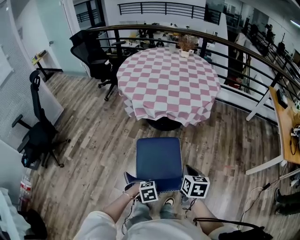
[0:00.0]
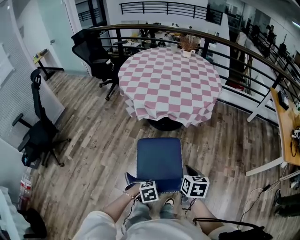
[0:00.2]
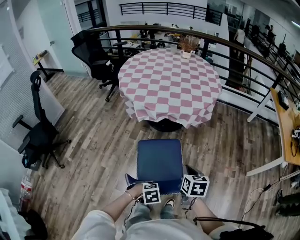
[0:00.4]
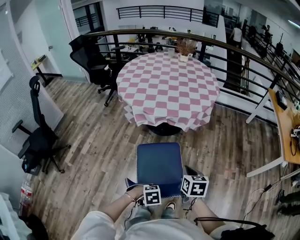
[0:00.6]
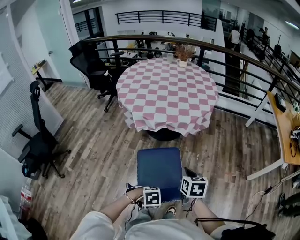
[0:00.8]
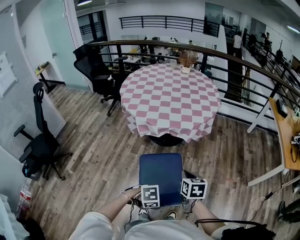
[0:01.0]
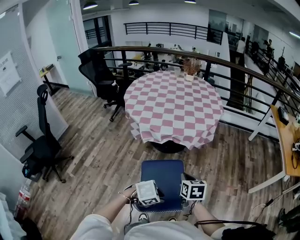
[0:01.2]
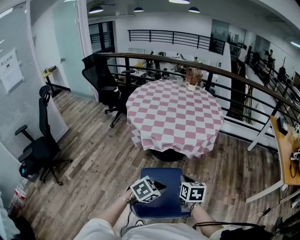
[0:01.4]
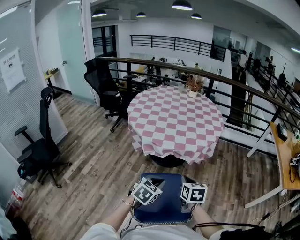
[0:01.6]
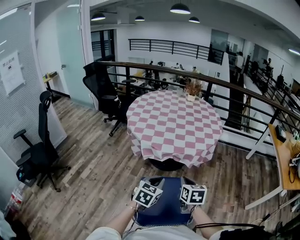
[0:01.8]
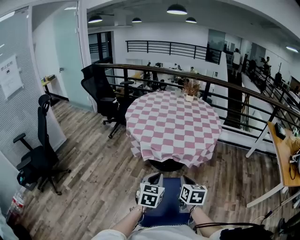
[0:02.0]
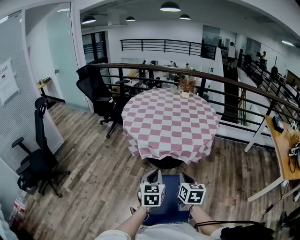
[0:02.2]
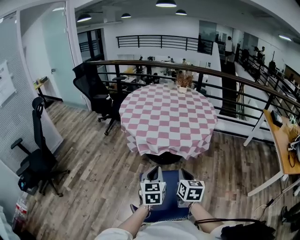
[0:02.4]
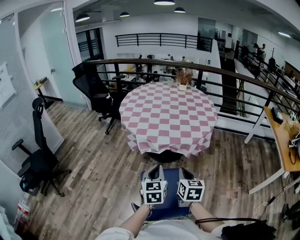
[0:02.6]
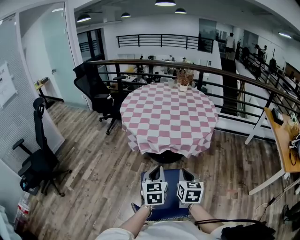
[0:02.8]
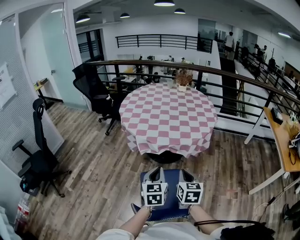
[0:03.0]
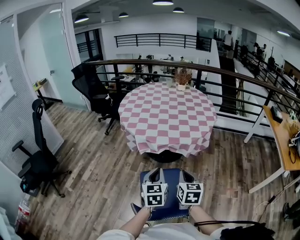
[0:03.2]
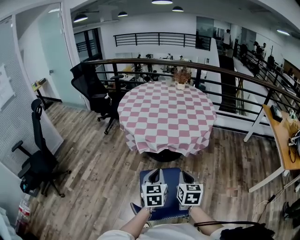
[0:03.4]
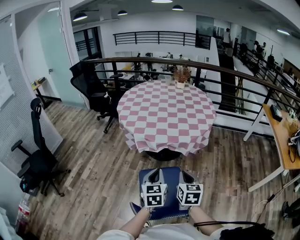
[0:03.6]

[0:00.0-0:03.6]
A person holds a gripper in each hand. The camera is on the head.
0:00.0 to 0:01.8: The right gripper ends up some 15 cm from where it was. The left gripper changes place by approximately 30 cm, tips its fingers upward by about 40 degrees, and closes its fingers.
0:01.8 to 0:03.6: The left gripper rotates roughly 20 degrees.

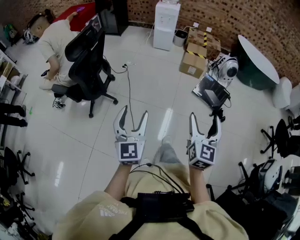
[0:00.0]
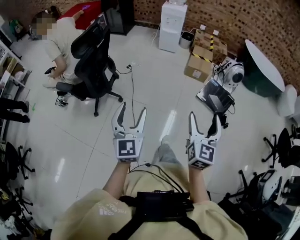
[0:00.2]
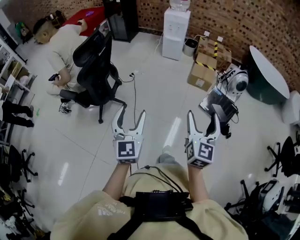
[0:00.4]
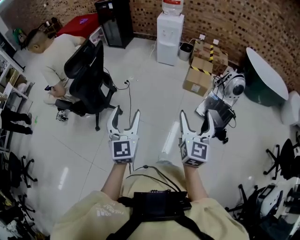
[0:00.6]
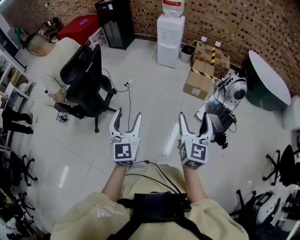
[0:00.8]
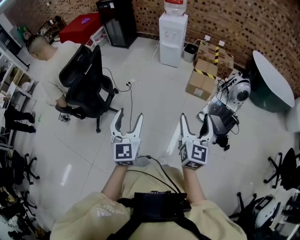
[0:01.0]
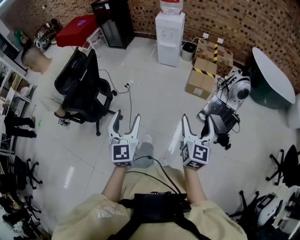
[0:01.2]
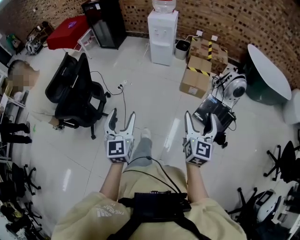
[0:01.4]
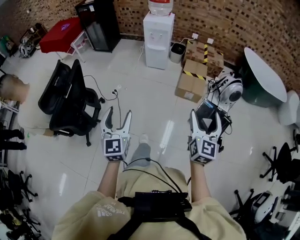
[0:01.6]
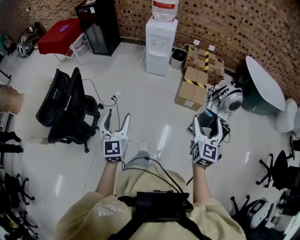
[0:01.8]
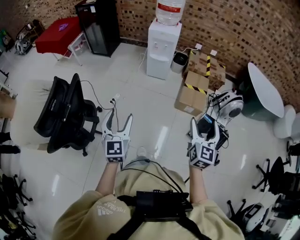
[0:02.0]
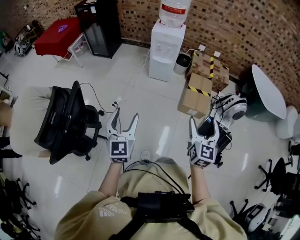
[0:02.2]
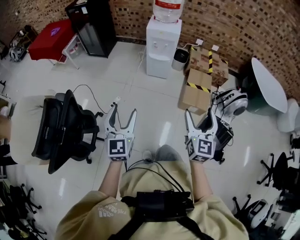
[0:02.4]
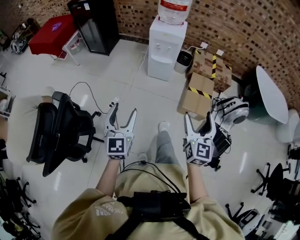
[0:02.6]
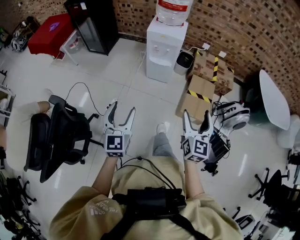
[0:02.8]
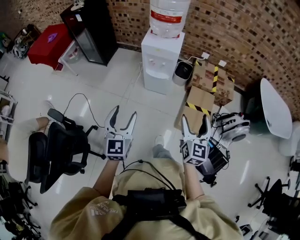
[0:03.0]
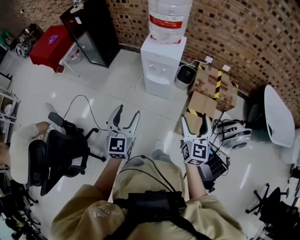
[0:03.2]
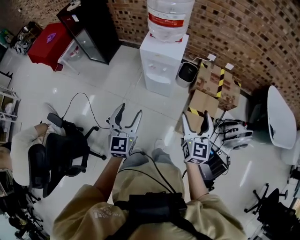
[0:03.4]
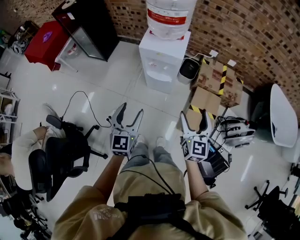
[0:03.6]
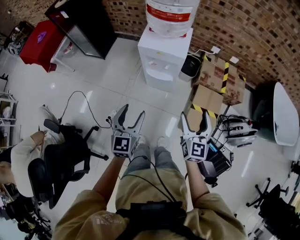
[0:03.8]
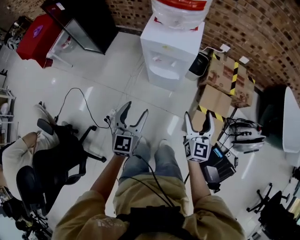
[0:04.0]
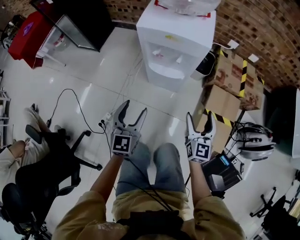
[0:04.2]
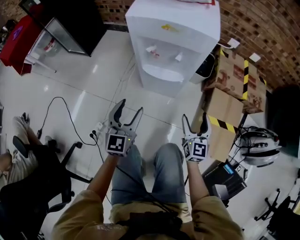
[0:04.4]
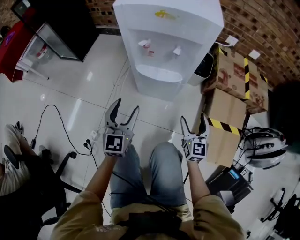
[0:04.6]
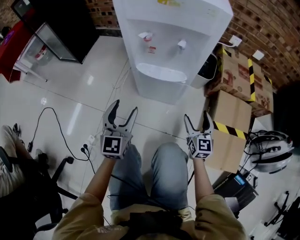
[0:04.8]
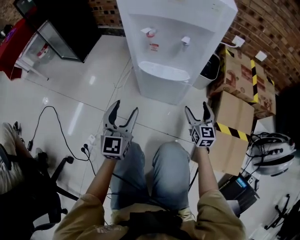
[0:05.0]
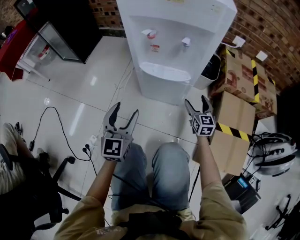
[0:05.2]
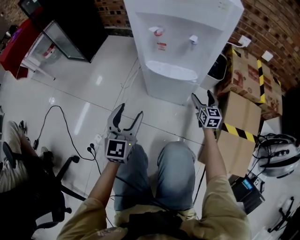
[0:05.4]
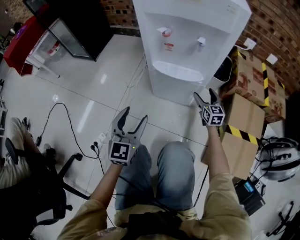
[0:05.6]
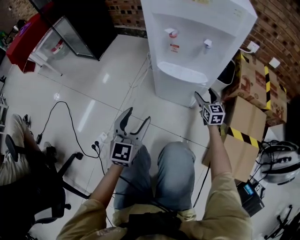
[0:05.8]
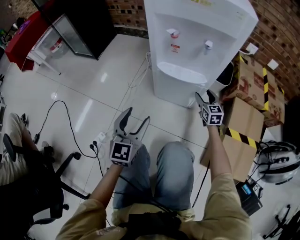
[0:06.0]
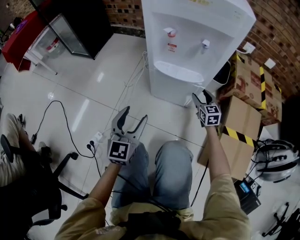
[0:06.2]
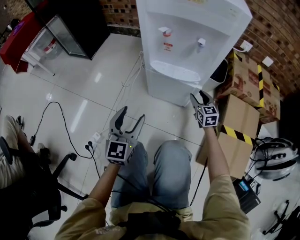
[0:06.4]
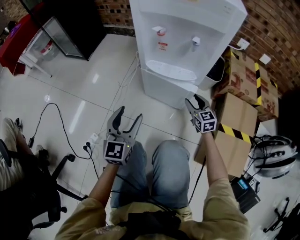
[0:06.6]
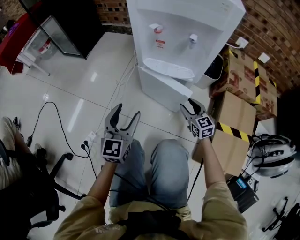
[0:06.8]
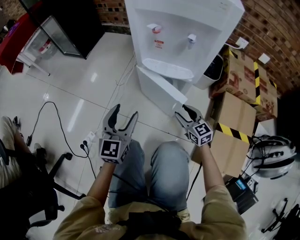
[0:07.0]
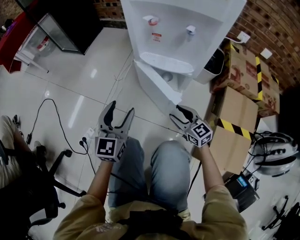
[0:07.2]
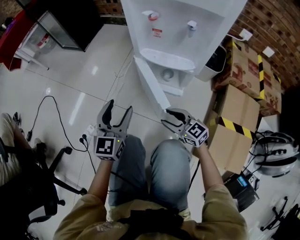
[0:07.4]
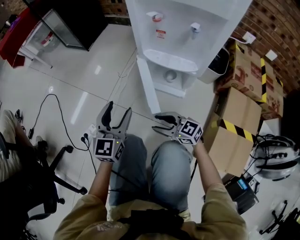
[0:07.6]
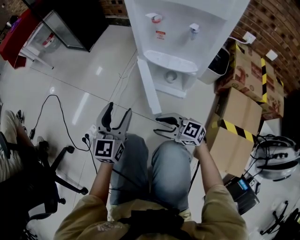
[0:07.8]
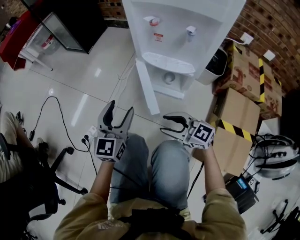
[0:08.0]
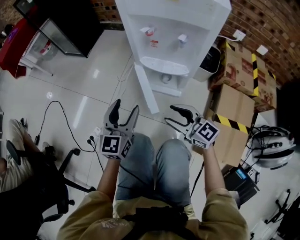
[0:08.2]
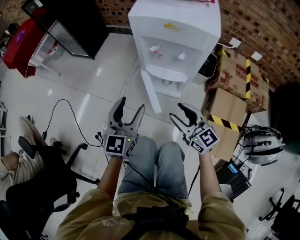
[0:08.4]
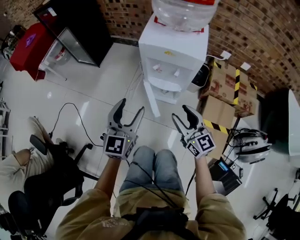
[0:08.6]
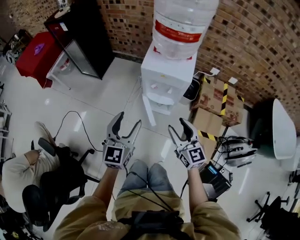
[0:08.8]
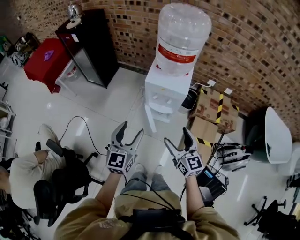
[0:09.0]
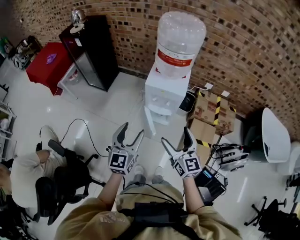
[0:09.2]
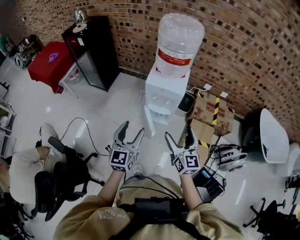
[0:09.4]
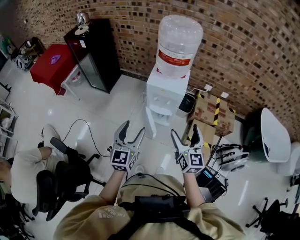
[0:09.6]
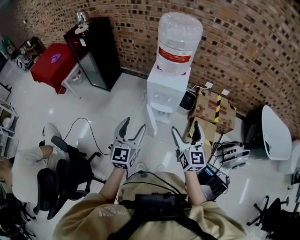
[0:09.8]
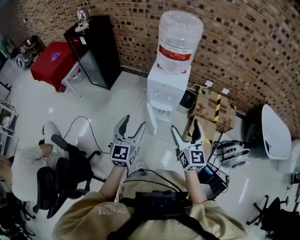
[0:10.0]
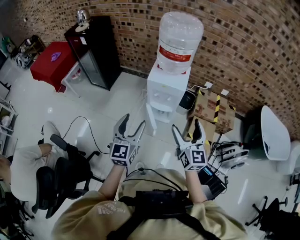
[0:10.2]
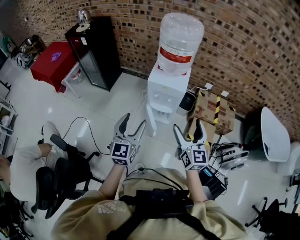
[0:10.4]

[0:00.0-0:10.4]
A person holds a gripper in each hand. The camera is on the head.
0:00.0 to 0:01.4: The two grippers go about 35 cm forward.
0:01.4 to 0:03.0: Both grippers are carried forward, approximately 60 cm.
0:03.0 to 0:04.4: The grippers both shift downward and forward by about 50 cm.
0:04.4 to 0:06.0: The right gripper heads downward and forward, covering about 30 cm. The left gripper moves downward, roughly 15 cm.
0:06.0 to 0:07.4: The right gripper moves backward and to the left, roughly 25 cm, and changes its angle by some 40 degrees.
0:07.4 to 0:09.0: Both grippers move upward, about 60 cm. The right gripper swivels about 40 degrees, and opens its fingers.
0:09.0 to 0:10.4: The left gripper shifts about 5 cm upward, while the right gripper travels upward by some 10 cm.

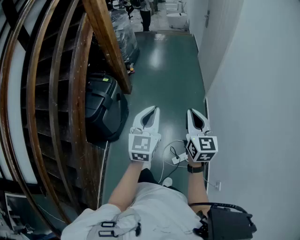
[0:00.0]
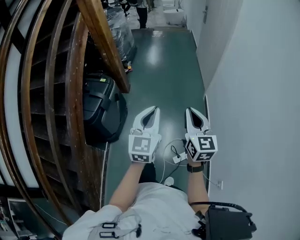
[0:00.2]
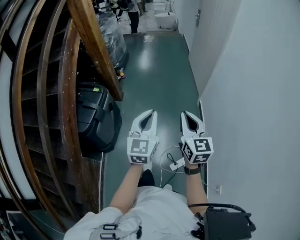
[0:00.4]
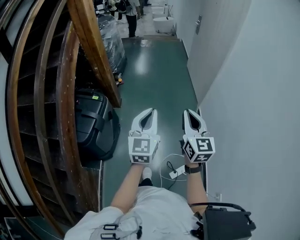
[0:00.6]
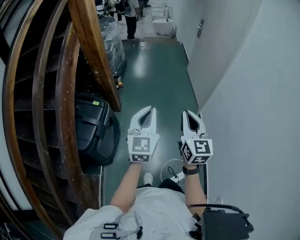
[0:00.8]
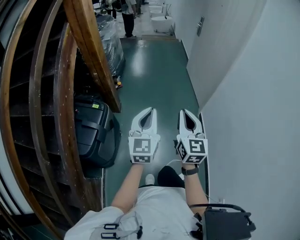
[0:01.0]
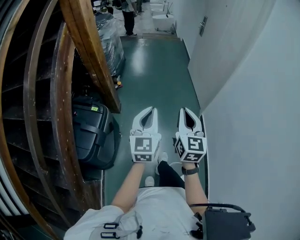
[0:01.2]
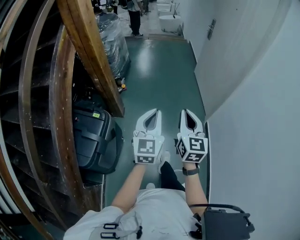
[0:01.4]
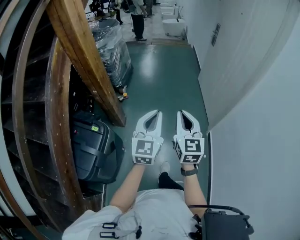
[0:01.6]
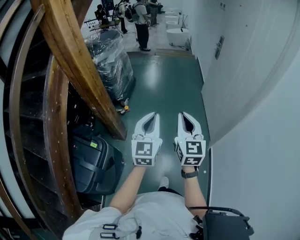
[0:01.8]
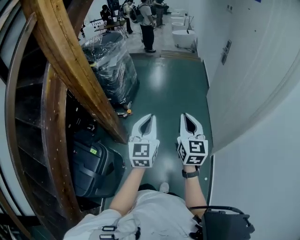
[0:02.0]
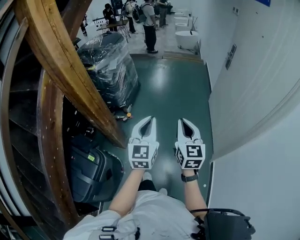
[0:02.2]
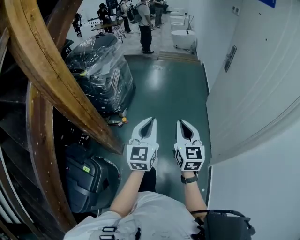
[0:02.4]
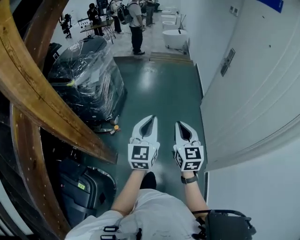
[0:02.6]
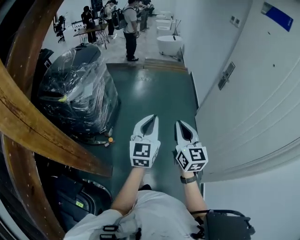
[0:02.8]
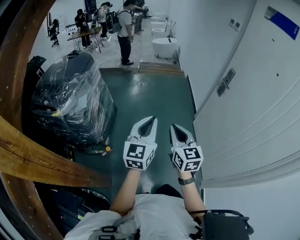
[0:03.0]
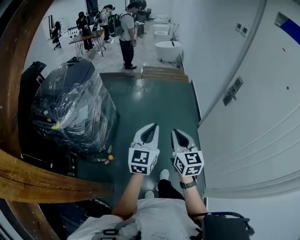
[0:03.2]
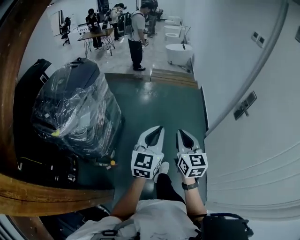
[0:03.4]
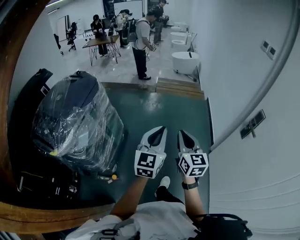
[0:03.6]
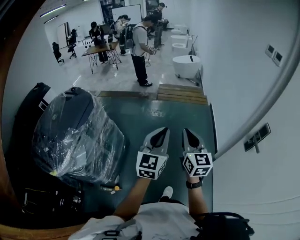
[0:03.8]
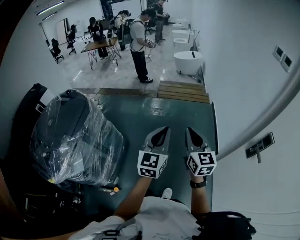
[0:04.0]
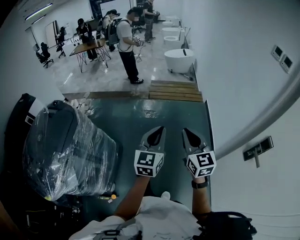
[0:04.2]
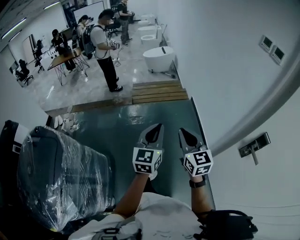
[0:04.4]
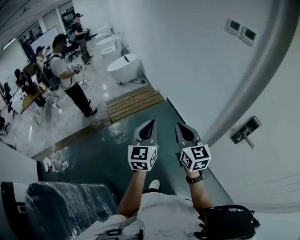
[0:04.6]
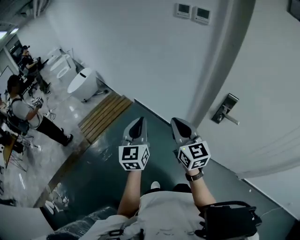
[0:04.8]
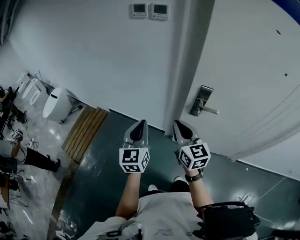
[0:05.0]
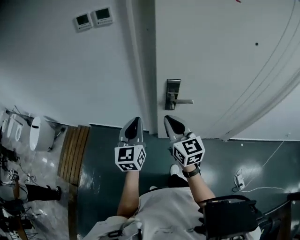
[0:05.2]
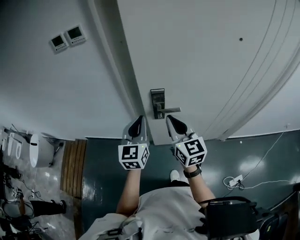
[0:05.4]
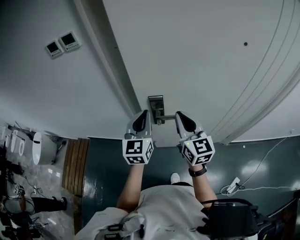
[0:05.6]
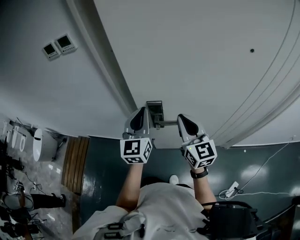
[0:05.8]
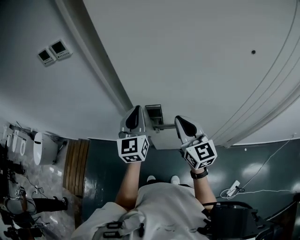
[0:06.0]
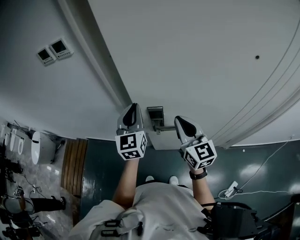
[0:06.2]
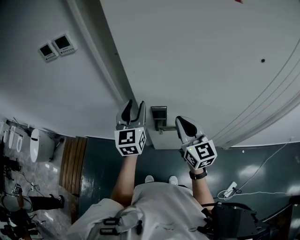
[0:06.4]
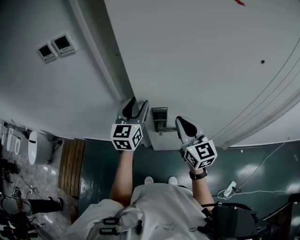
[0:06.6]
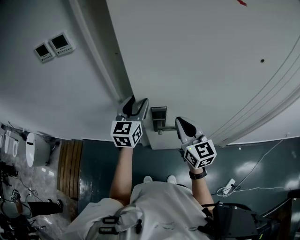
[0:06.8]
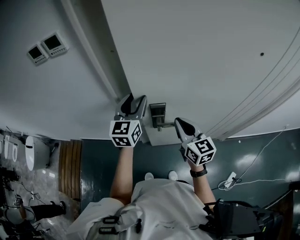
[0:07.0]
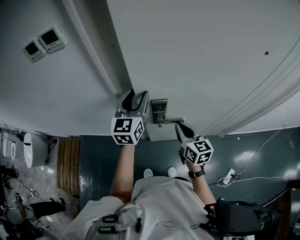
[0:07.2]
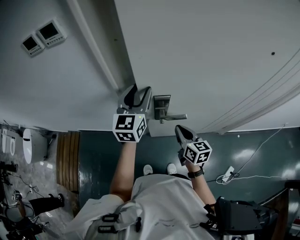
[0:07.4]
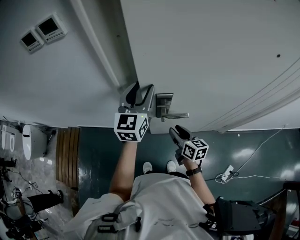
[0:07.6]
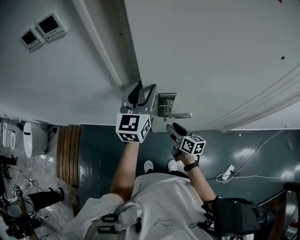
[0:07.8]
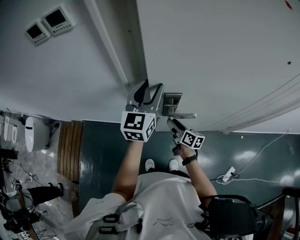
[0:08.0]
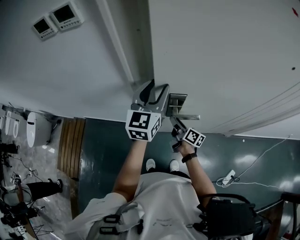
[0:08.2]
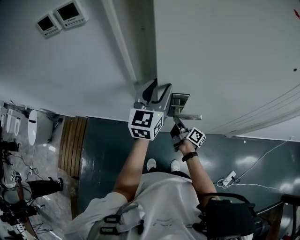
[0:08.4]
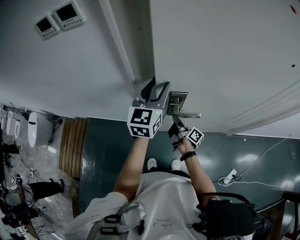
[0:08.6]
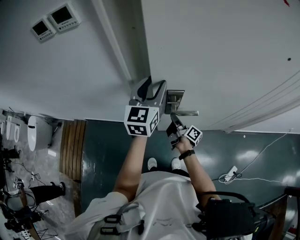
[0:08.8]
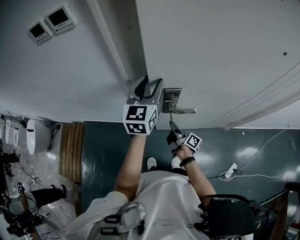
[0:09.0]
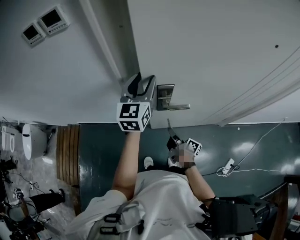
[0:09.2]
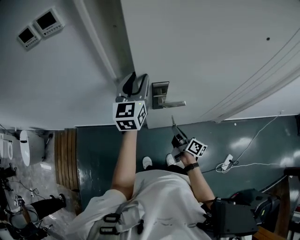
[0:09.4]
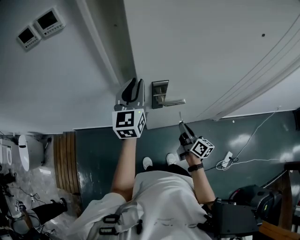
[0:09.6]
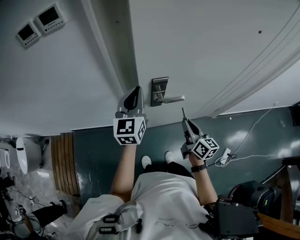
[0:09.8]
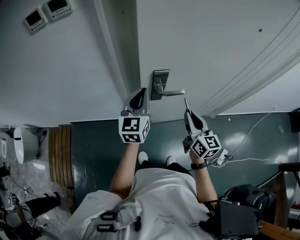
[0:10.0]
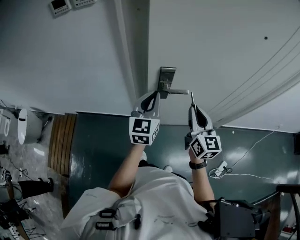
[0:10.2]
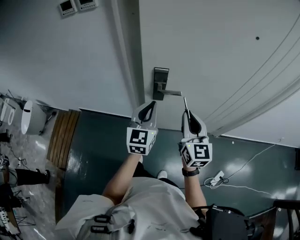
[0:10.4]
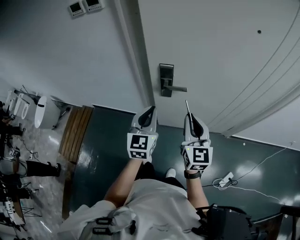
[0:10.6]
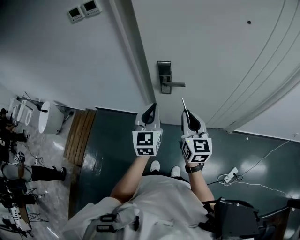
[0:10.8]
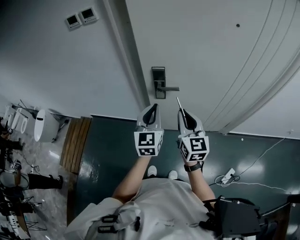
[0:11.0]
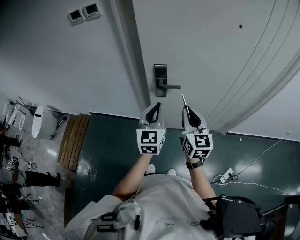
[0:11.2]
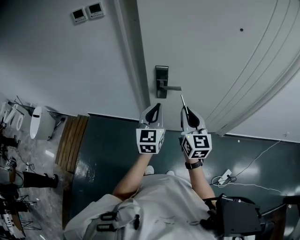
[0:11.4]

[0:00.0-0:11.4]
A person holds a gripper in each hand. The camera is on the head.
0:00.0 to 0:01.4: The left gripper is displaced forward by about 35 cm. The right gripper goes approximately 40 cm forward and to the left.
0:01.4 to 0:02.8: Both grippers are carried forward, some 60 cm.
0:02.8 to 0:04.2: Both grippers are carried forward, approximately 60 cm.
0:04.2 to 0:05.6: Both grippers are carried some 50 cm. The left gripper swivels approximately 80 degrees, while the right gripper changes its angle by about 90 degrees.
0:05.6 to 0:07.2: The right gripper travels downward by some 15 cm, and swivels approximately 20 degrees, while the left gripper moves forward, about 10 cm, and opens up.
0:07.2 to 0:08.6: The right gripper travels downward by some 15 cm, rotates around the line of its fingers by some 70 degrees, clockwise from behind, and opens and closes again.
0:08.6 to 0:10.0: The right gripper moves upward, backward and to the right, some 25 cm, and rotates around the line of its fingers by about 70 degrees, counterclockwise from behind, while the left gripper shifts approximately 10 cm backward and downward, and closes up.
0:10.0 to 0:11.4: The right gripper moves backward and upward, some 10 cm, while the left gripper goes some 20 cm backward and to the right.
